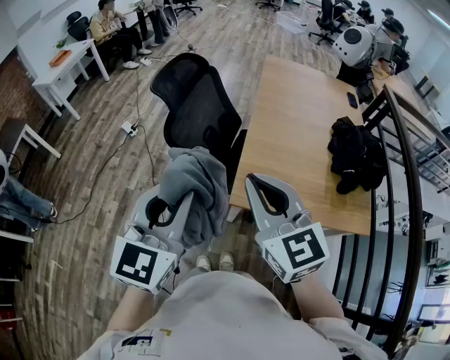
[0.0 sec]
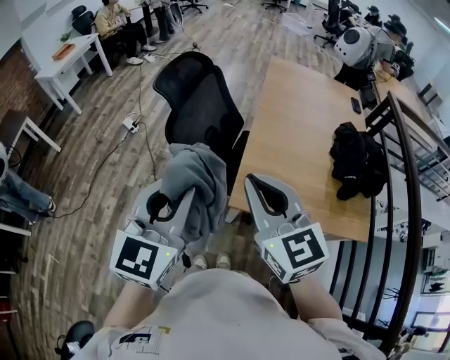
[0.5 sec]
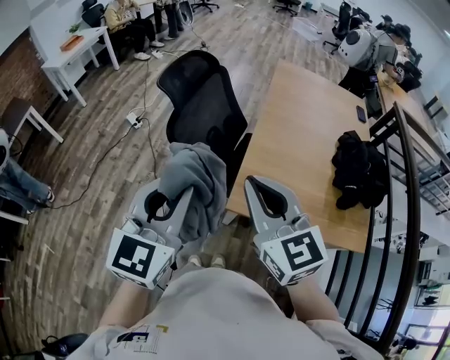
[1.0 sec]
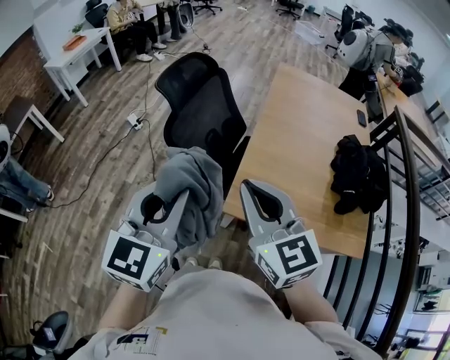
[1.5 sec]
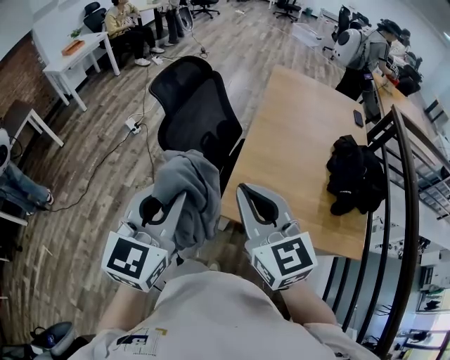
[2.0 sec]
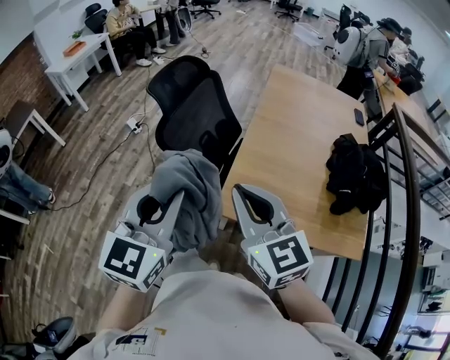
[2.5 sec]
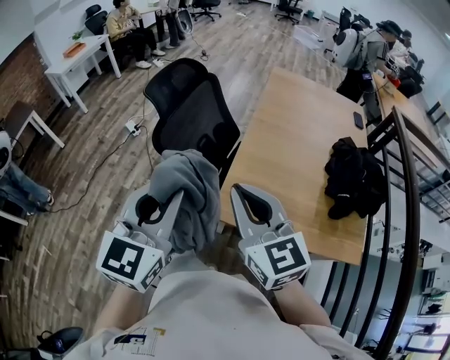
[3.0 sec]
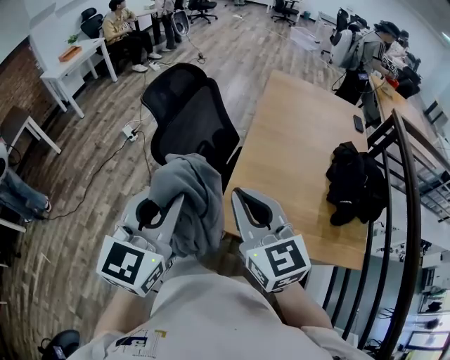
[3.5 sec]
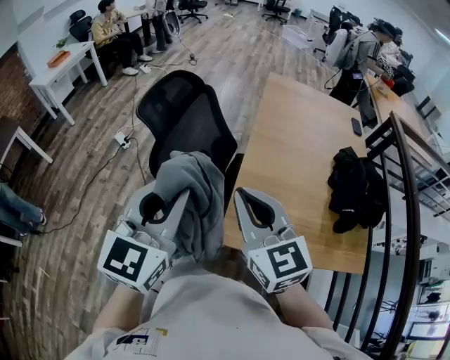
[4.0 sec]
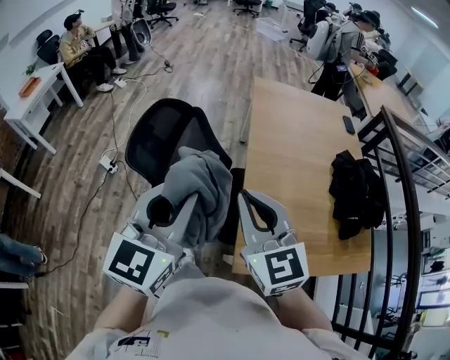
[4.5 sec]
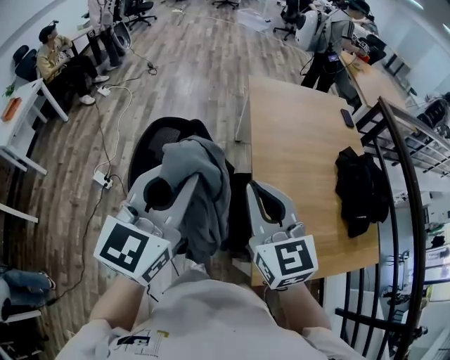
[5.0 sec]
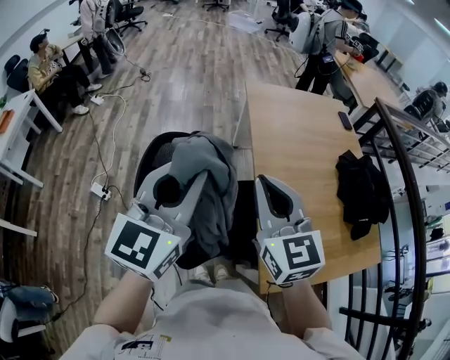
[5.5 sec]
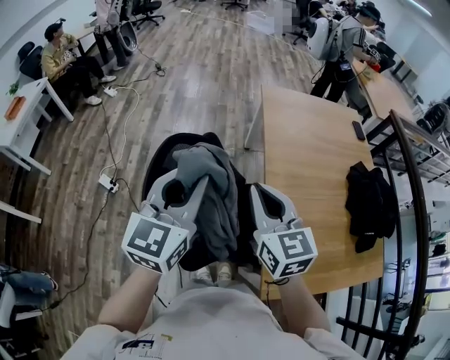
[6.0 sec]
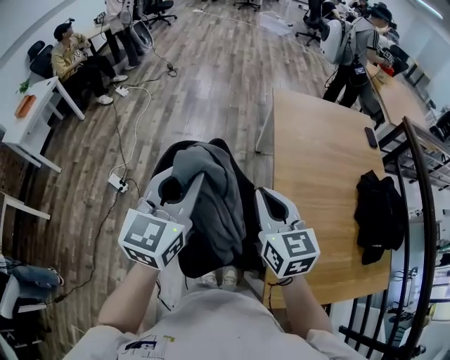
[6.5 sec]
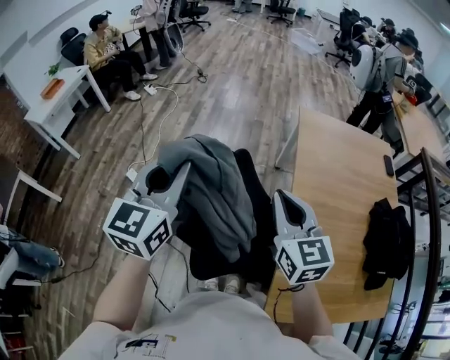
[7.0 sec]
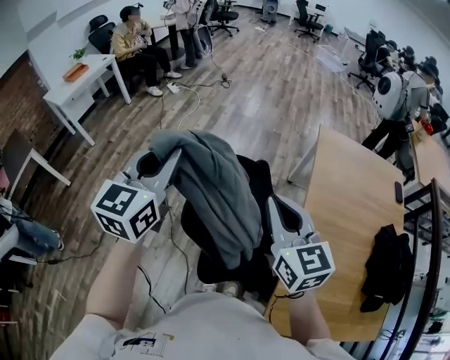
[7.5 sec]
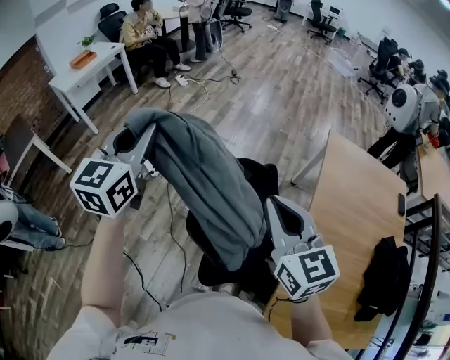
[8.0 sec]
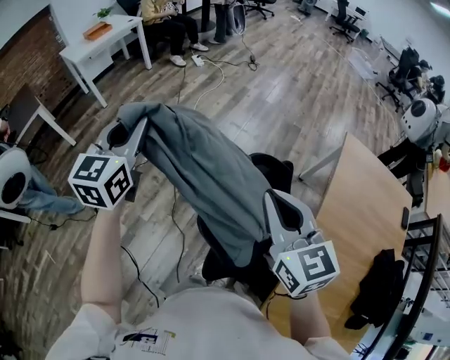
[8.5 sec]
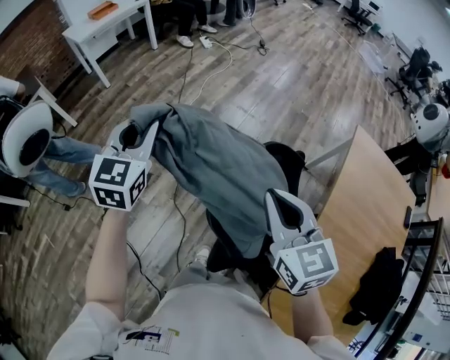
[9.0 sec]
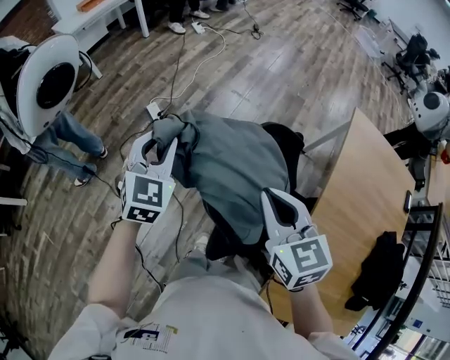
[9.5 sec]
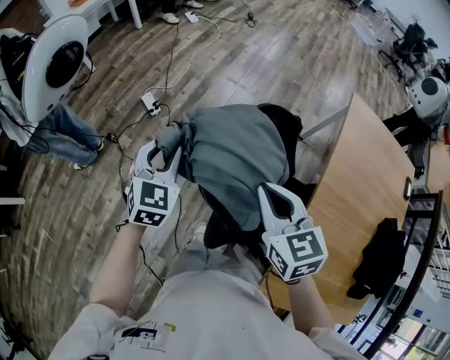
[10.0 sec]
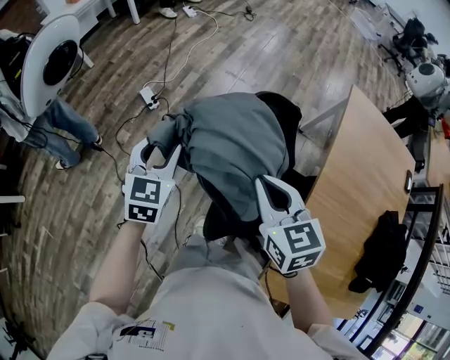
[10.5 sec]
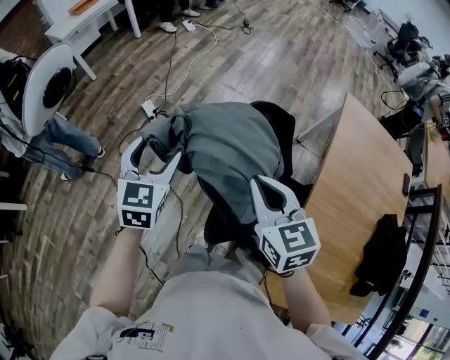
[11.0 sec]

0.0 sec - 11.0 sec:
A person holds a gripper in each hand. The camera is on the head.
0.0 sec - 2.0 sec: There are only small adjustments of the grippers.
2.0 sec - 3.5 sec: The right gripper changes place by approximately 5 cm.
3.5 sec - 5.5 sec: Both grippers are carried roughly 40 cm. The right gripper turns by some 30 degrees; the left gripper changes its angle by roughly 30 degrees.
5.5 sec - 7.5 sec: The right gripper travels downward and back again, approximately 10 cm each way, and changes its angle by roughly 20 degrees; the left gripper moves about 20 cm, and turns by some 30 degrees.
7.5 sec - 9.0 sec: The right gripper is displaced to the left, downward and forward by some 15 cm. Meanwhile the left gripper heads to the left, downward and forward, covering about 20 cm, and turns by about 20 degrees.
9.0 sec - 11.0 sec: The right gripper travels downward and backward by about 10 cm; the left gripper moves backward and downward, some 15 cm, and opens its fingers.

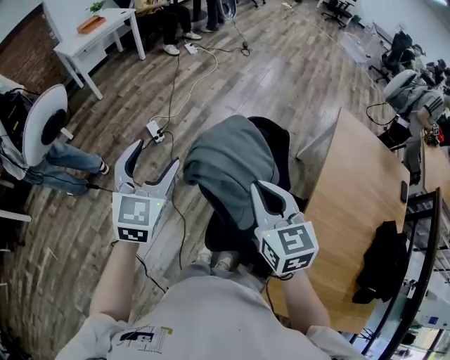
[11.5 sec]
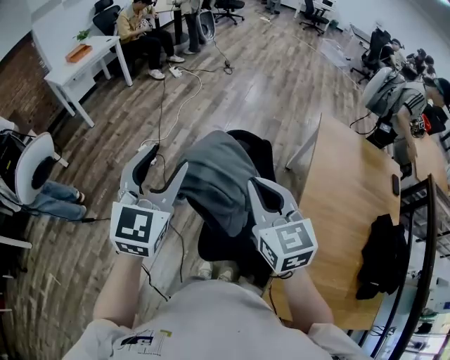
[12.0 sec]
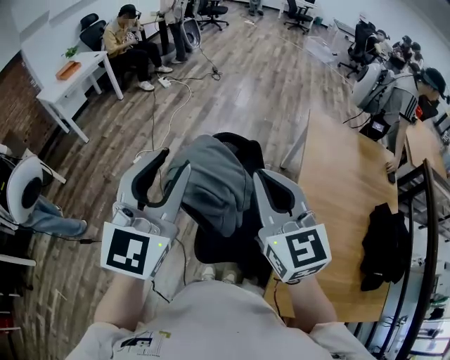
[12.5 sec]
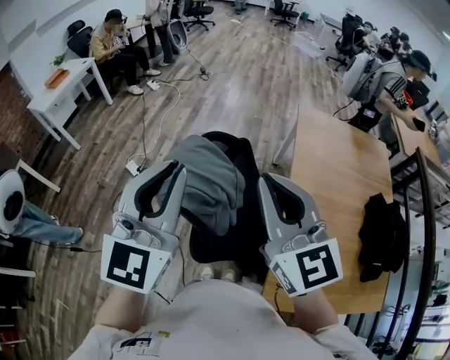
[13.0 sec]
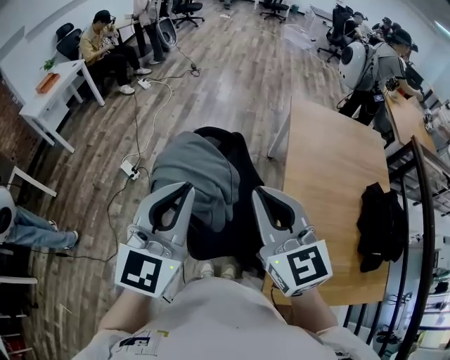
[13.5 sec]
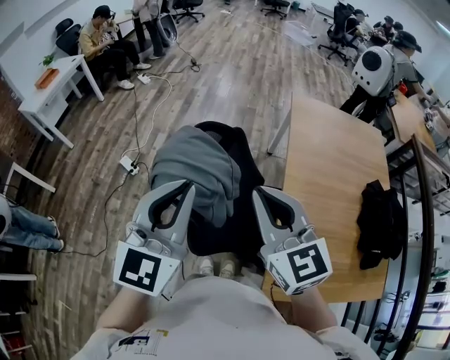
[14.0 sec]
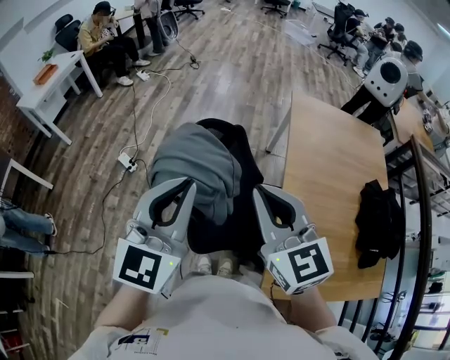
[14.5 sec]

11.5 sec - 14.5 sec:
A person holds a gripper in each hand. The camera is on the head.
11.5 sec - 13.0 sec: The right gripper heads upward and to the right, covering about 20 cm, and turns by approximately 30 degrees. Meanwhile the left gripper is displaced upward, to the right and backward by some 25 cm, changes its angle by some 30 degrees, and closes its fingers.
13.0 sec - 14.5 sec: The two grippers go about 5 cm downward.

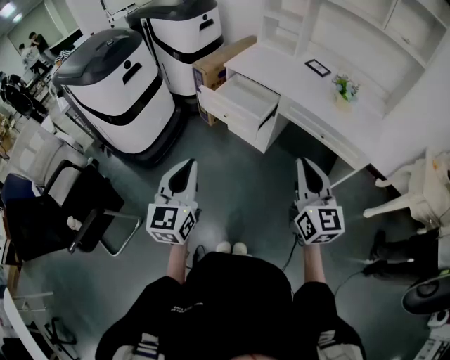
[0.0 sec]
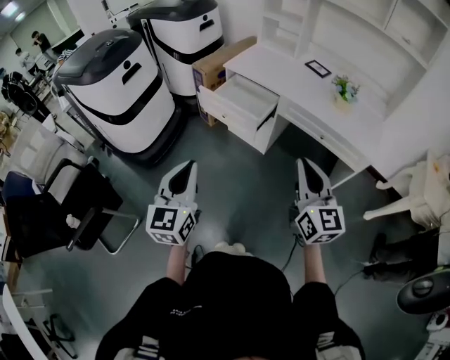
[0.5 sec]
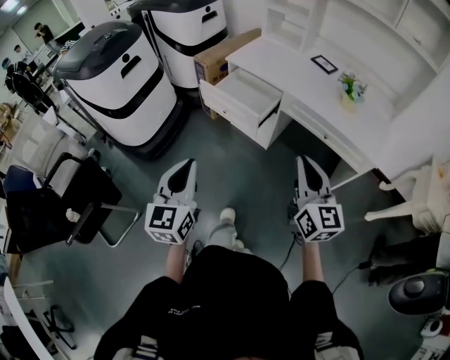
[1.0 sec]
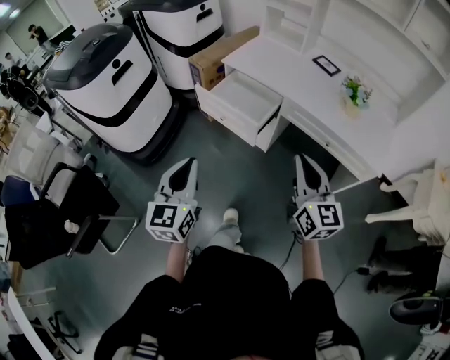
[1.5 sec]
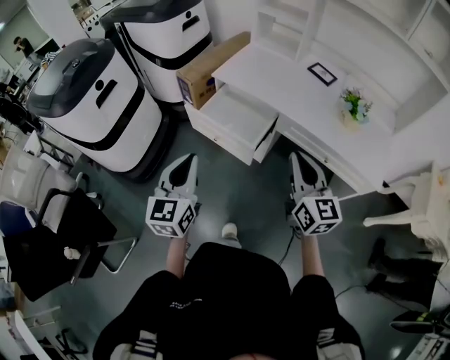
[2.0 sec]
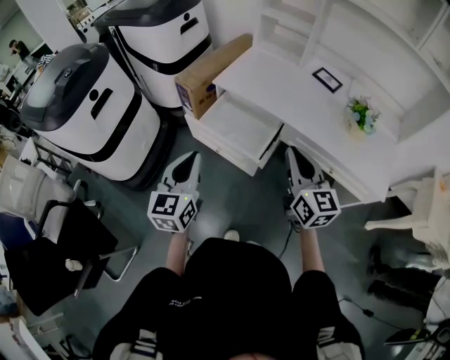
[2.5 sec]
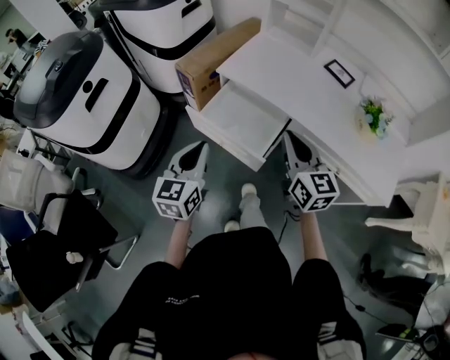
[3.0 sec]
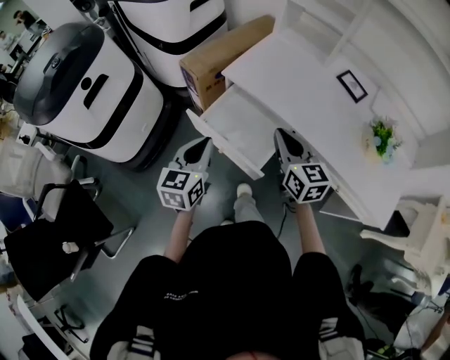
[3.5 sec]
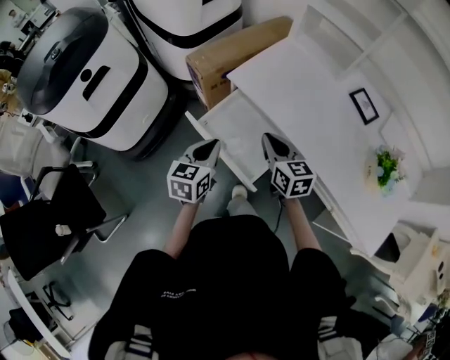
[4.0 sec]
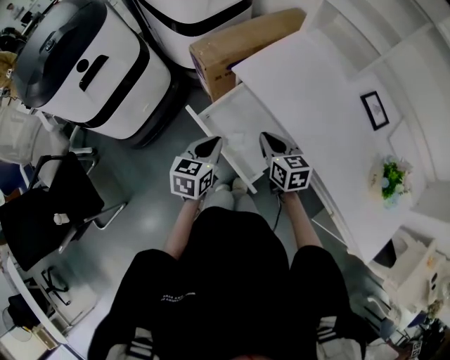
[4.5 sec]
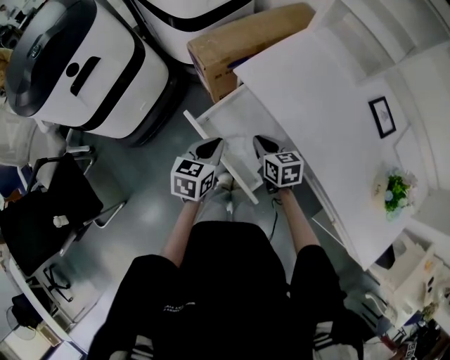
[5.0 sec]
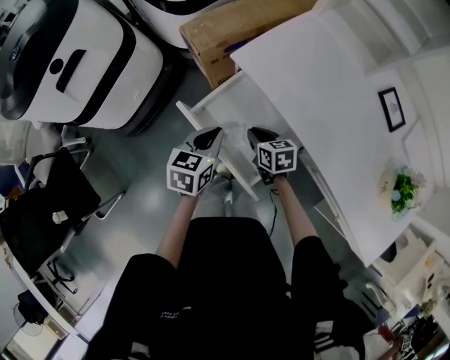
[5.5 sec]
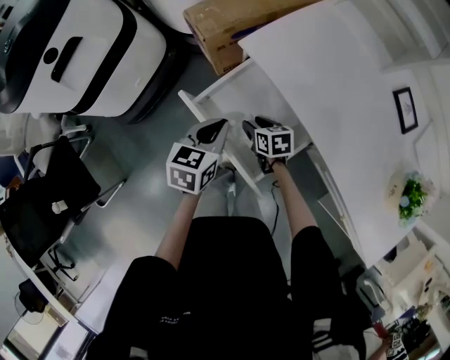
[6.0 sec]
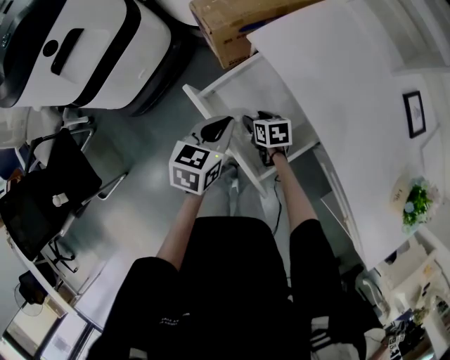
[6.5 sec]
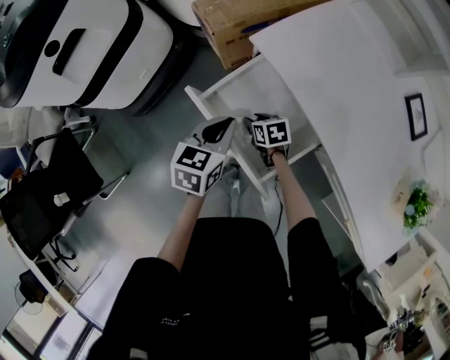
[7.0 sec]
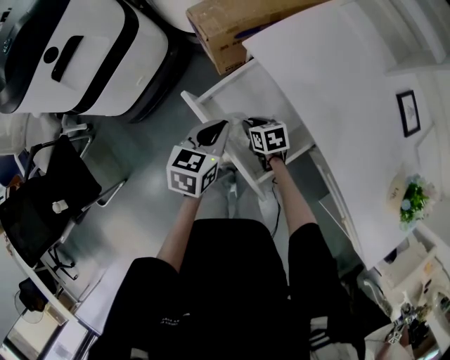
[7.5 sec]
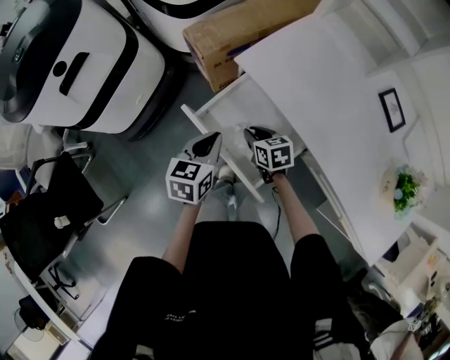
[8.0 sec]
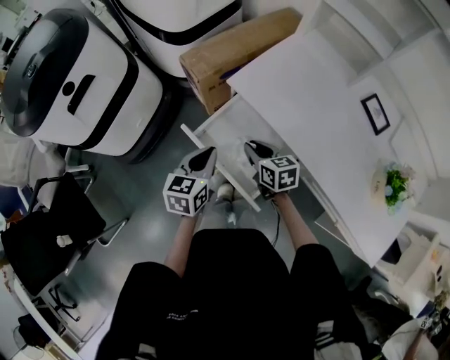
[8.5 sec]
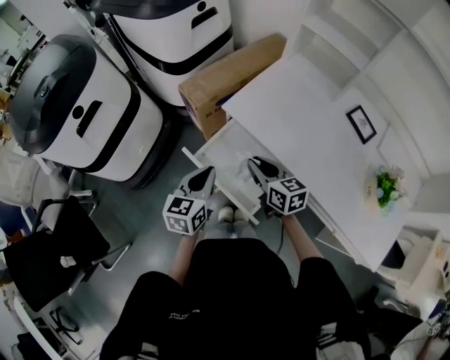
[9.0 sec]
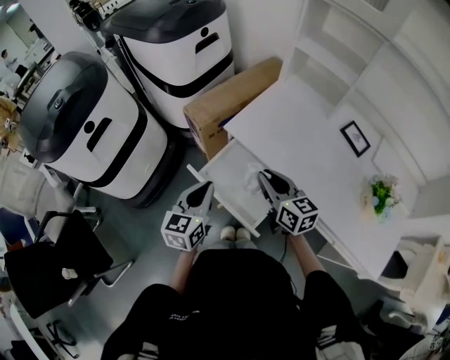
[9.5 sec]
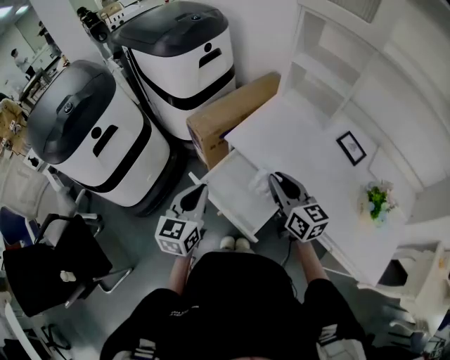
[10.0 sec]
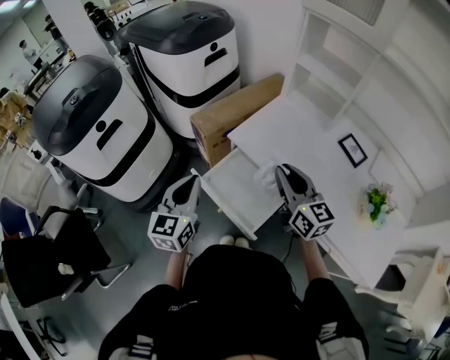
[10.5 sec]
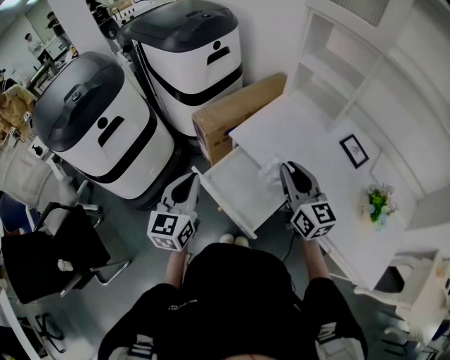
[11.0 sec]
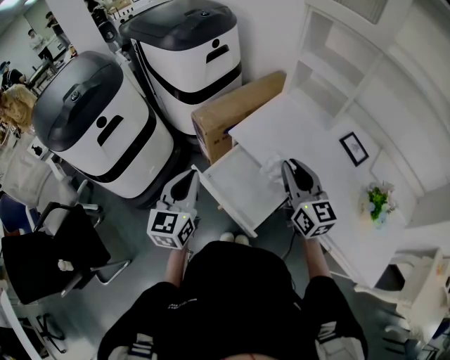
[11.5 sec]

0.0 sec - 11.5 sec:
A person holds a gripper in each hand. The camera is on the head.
0.0 sec - 2.0 sec: Both grippers travel together forward, some 25 cm.
2.0 sec - 4.0 sec: Both grippers travel together forward and downward, roughly 35 cm. The left gripper rotates approximately 20 degrees. Meanwhile the right gripper swivels some 30 degrees.
4.0 sec - 6.0 sec: The right gripper heads downward, covering approximately 25 cm, turns by some 30 degrees, and opens up. Meanwhile the left gripper heads downward and forward, covering about 10 cm.
6.0 sec - 7.5 sec: The right gripper closes its fingers.
7.5 sec - 9.5 sec: The left gripper shifts roughly 15 cm upward, and swivels about 20 degrees, while the right gripper goes about 35 cm upward, and tips its fingers upward by approximately 40 degrees.
9.5 sec - 11.5 sec: The left gripper is displaced upward by some 10 cm; the right gripper heads upward and to the right, covering approximately 10 cm, and turns by some 20 degrees.

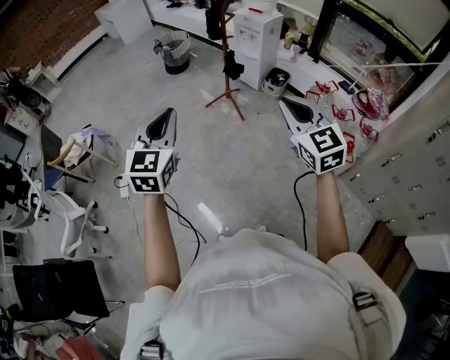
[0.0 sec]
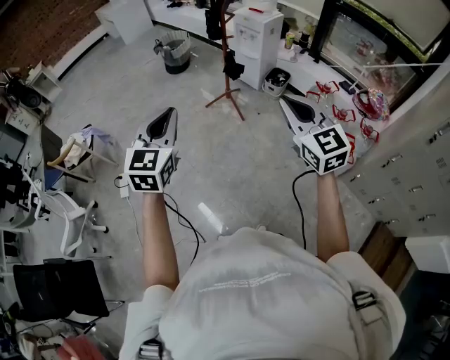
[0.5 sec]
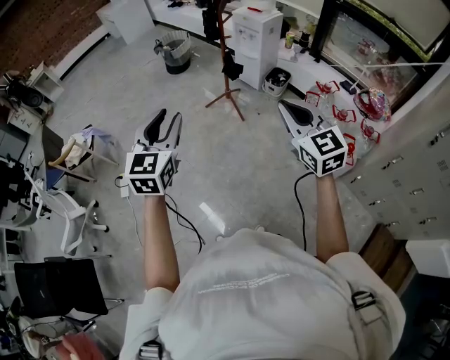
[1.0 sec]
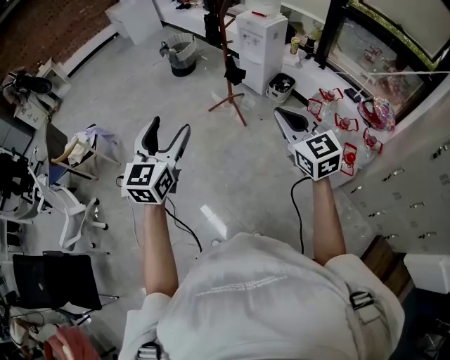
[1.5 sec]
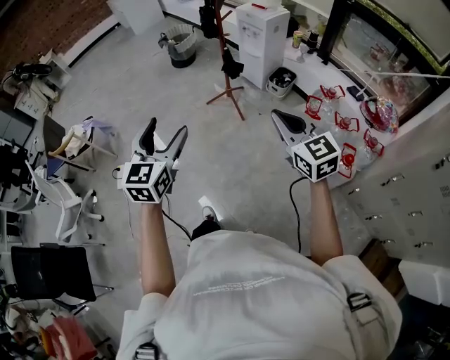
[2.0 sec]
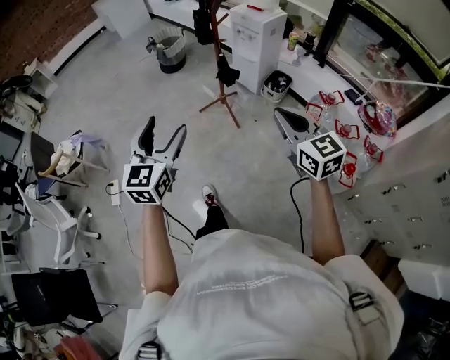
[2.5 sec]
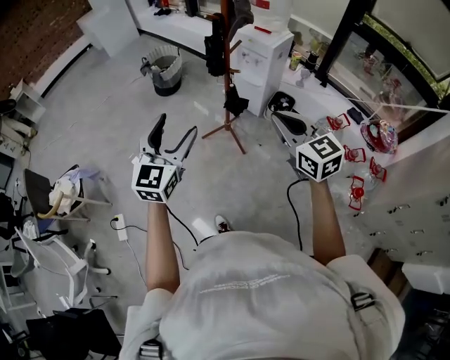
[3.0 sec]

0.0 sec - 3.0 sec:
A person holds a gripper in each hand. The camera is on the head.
0.0 sec - 1.5 sec: Both grippers travel together to the right, about 5 cm. The left gripper opens its fingers.
1.5 sec - 3.0 sec: The grippers both shift forward by approximately 30 cm.
